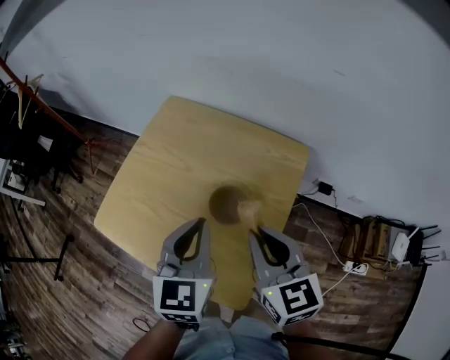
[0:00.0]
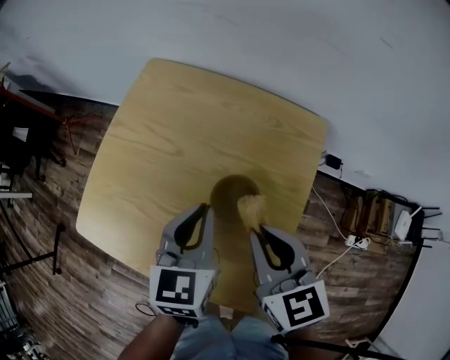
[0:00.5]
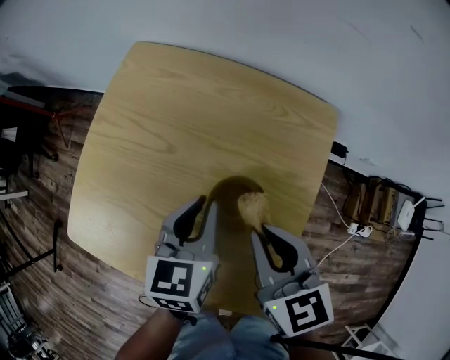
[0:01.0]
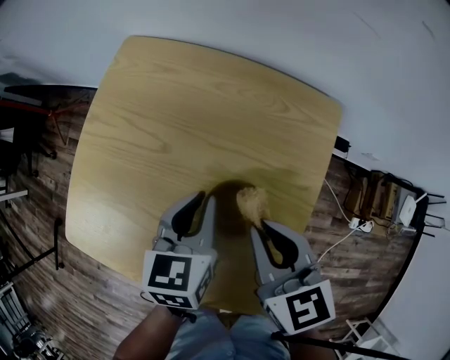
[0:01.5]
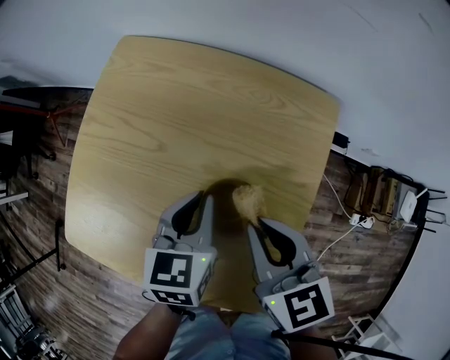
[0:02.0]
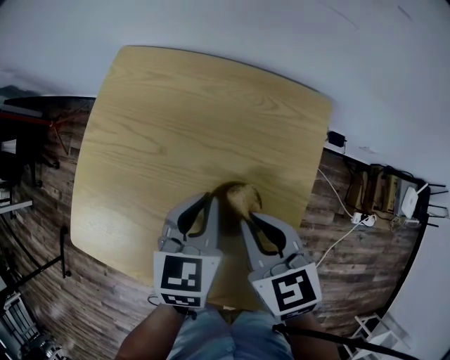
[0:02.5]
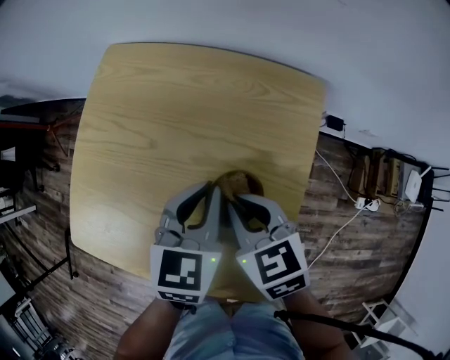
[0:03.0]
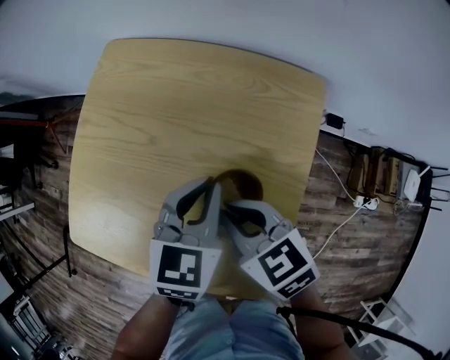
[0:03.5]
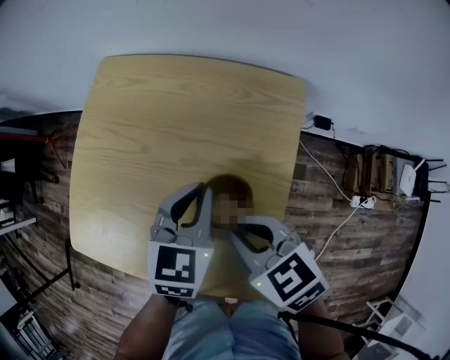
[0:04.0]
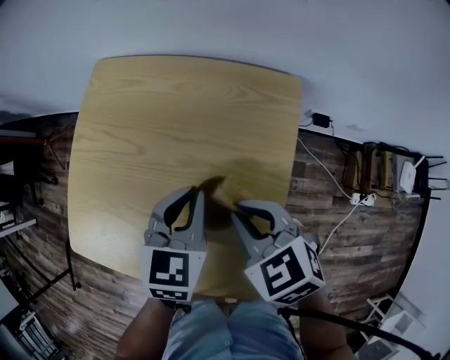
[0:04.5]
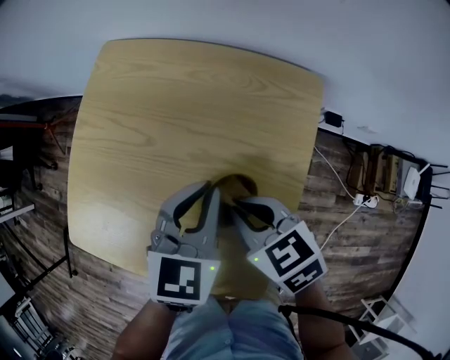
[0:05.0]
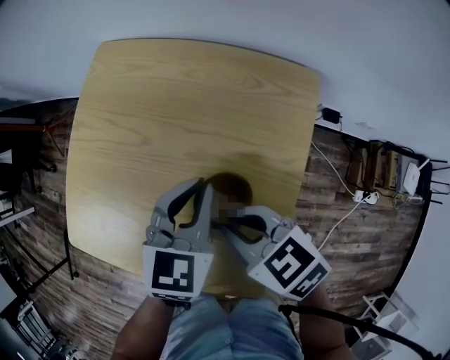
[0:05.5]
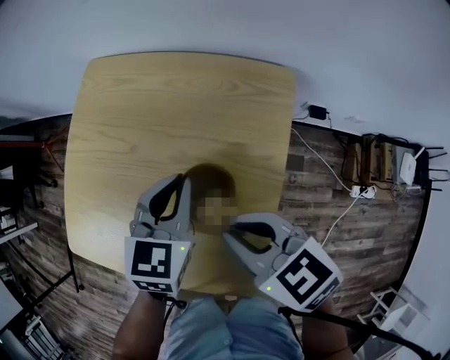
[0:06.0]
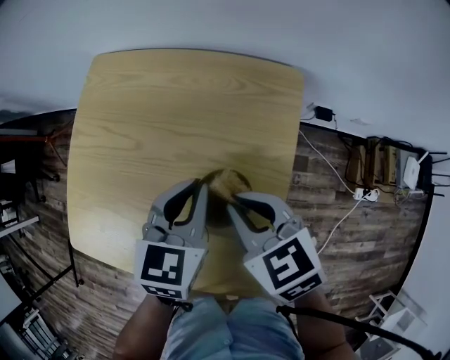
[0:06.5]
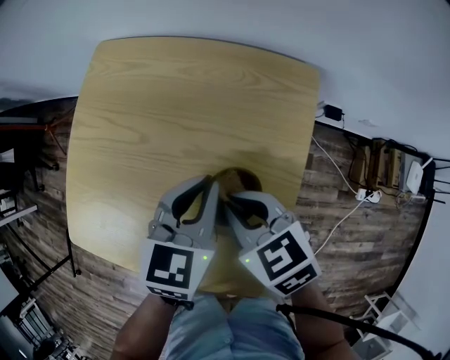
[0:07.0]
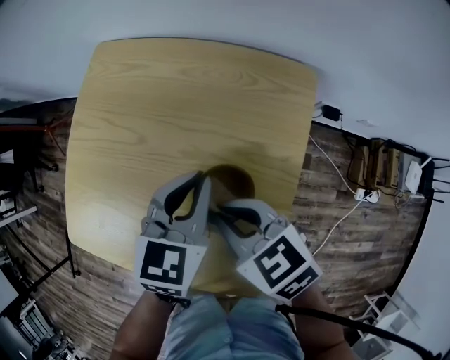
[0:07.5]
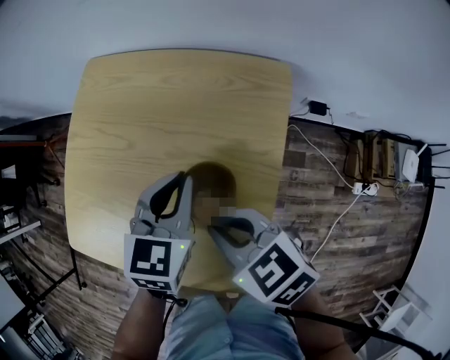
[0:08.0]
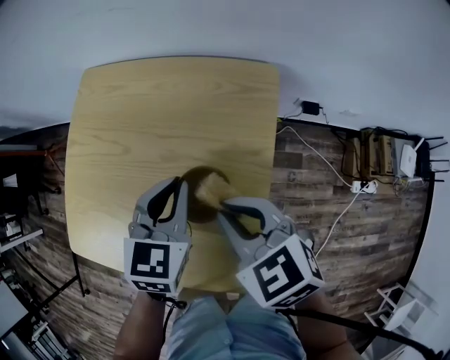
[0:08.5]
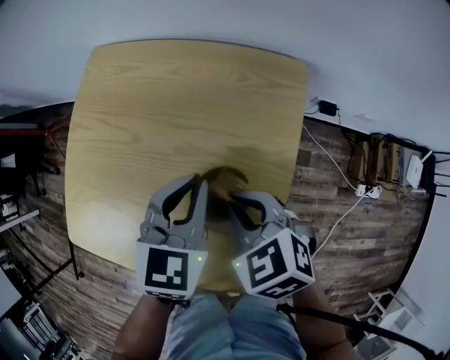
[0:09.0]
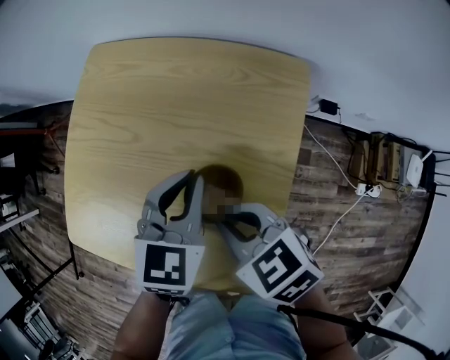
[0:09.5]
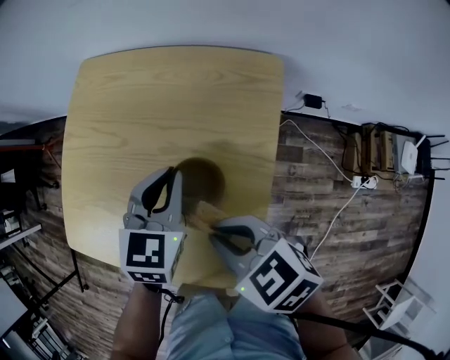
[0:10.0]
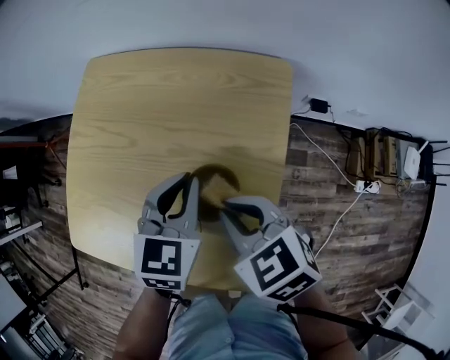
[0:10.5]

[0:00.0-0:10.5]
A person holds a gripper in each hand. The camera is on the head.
0:00.0 to 0:02.0: Both grippers move downward and forward, about 15 cm. The left gripper changes its angle by roughly 20 degrees.
0:02.0 to 0:04.0: The left gripper ends up approximately 5 cm from where it was, and changes its angle by some 20 degrees. The right gripper goes some 5 cm backward, and rotates approximately 20 degrees.
0:04.0 to 0:08.5: The grippers make only small movements.

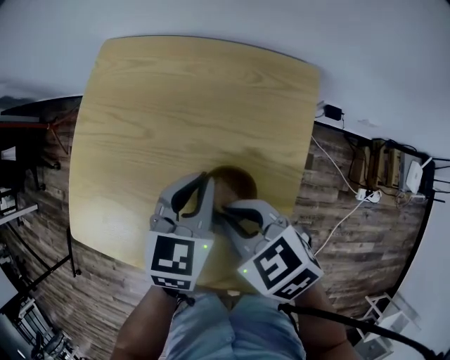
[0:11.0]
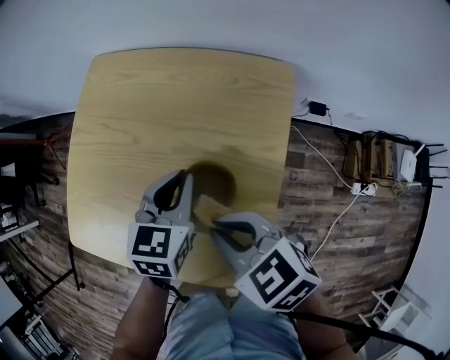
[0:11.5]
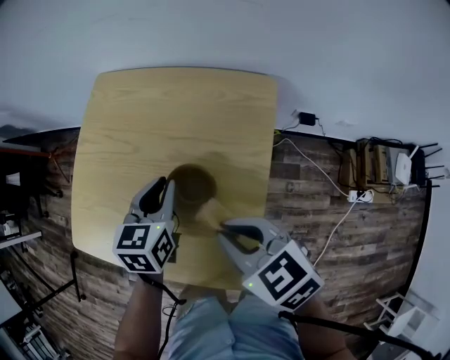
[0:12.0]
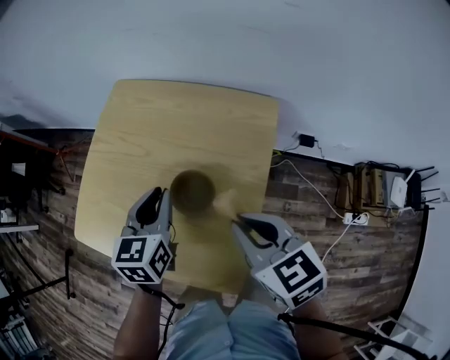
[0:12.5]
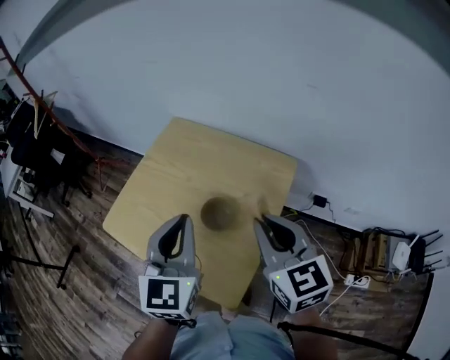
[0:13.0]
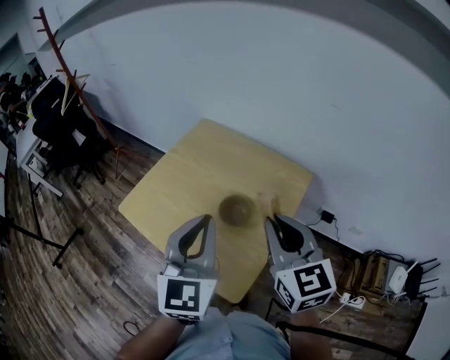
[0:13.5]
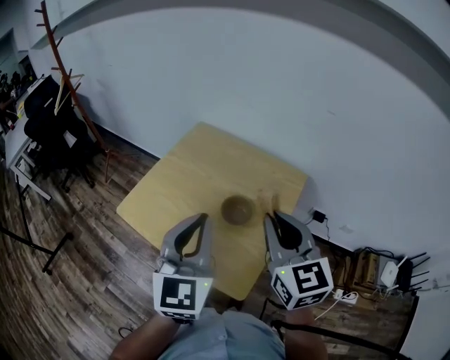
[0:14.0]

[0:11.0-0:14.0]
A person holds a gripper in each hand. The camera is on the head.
0:11.0 to 0:12.5: The right gripper travels upward, to the right and backward by some 15 cm, and swivels about 20 degrees; the left gripper travels to the left and upward by approximately 5 cm.
0:12.5 to 0:14.0: The right gripper heads upward, covering some 15 cm, and rotates about 30 degrees; the left gripper heads upward and backward, covering approximately 25 cm, and changes its angle by approximately 30 degrees.

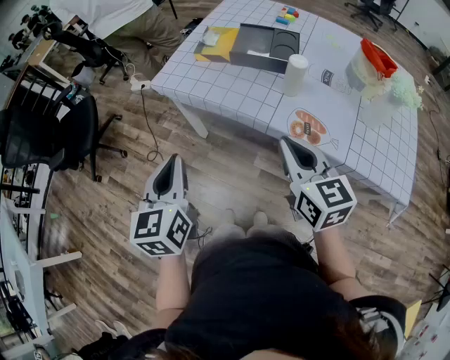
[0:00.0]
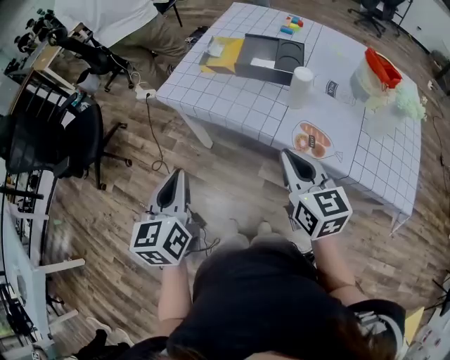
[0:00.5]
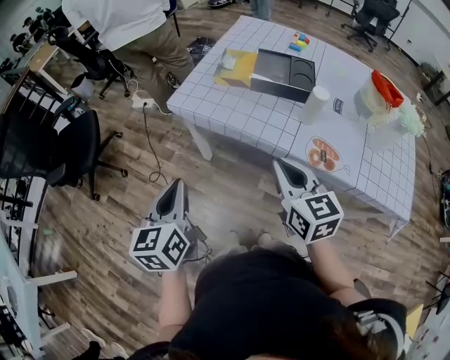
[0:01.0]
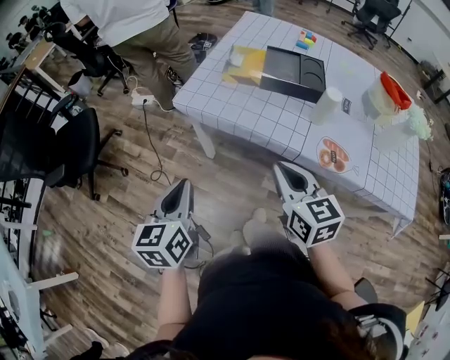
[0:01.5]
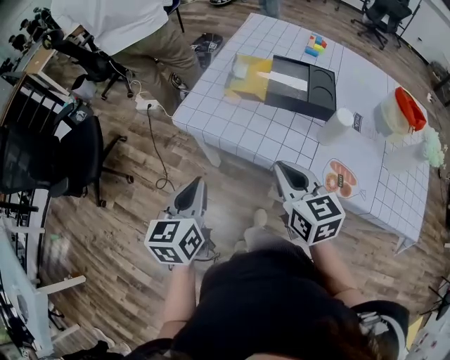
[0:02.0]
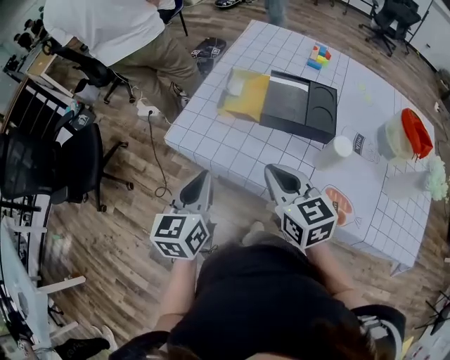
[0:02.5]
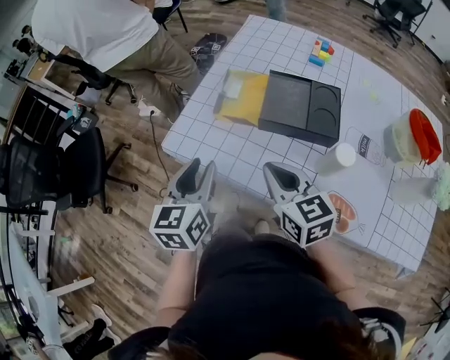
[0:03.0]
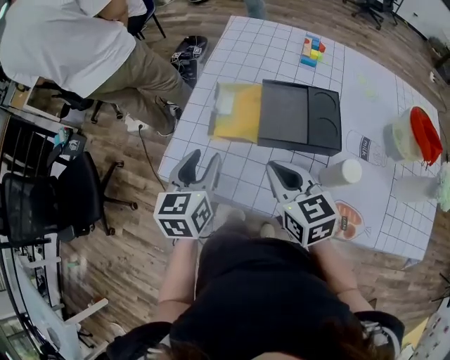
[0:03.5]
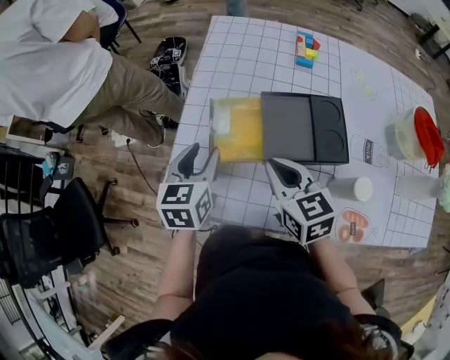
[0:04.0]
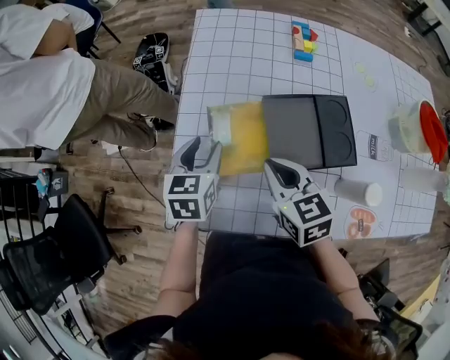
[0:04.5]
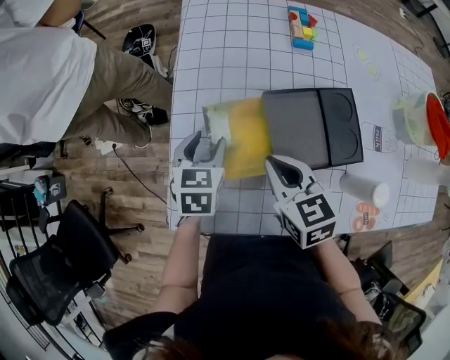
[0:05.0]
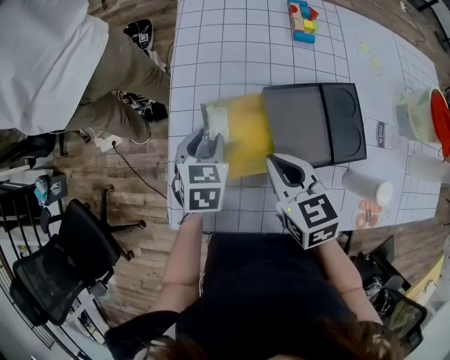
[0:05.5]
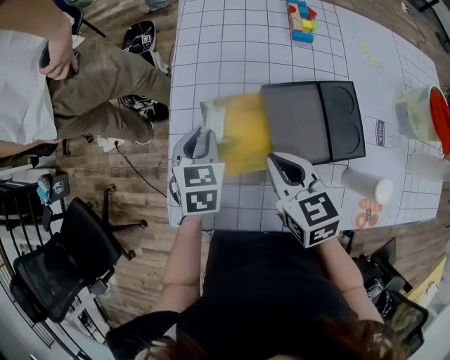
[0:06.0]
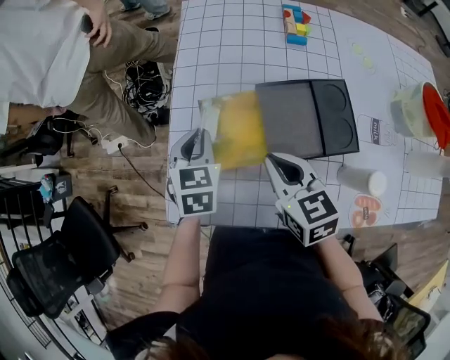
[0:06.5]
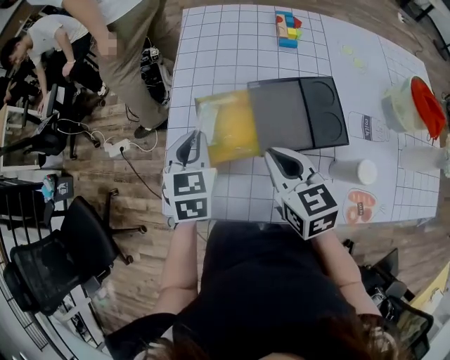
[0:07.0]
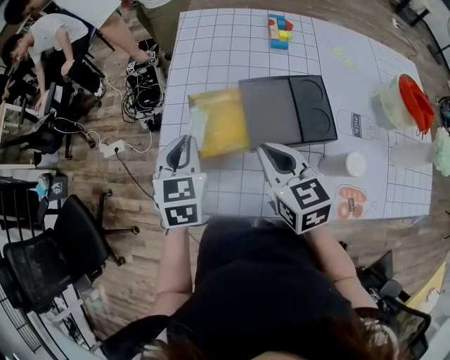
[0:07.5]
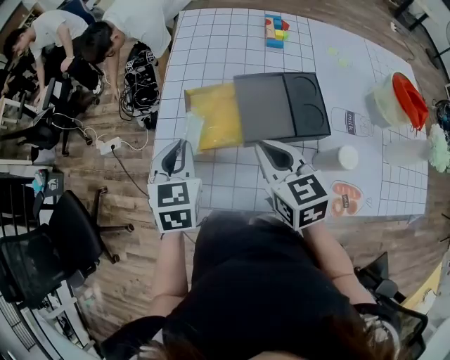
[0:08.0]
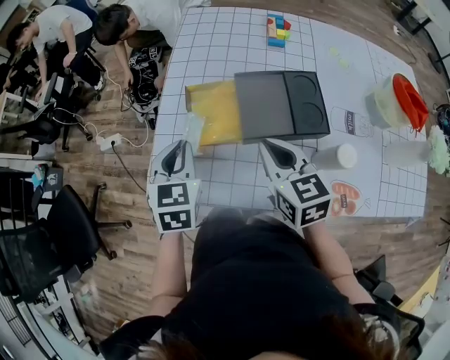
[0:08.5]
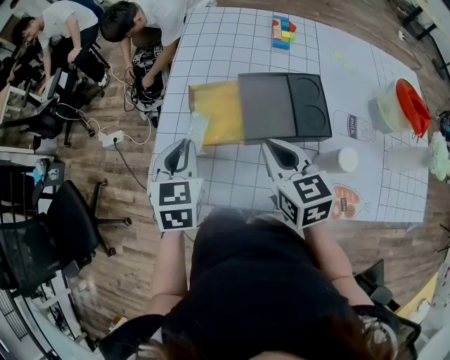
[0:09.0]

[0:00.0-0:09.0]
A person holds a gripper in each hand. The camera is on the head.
0:00.0 to 0:02.0: The right gripper shifts roughly 20 cm forward and to the left. Meanwhile the left gripper travels forward, to the left and downward by roughly 15 cm.
0:02.0 to 0:04.5: Both grippers move forward, about 35 cm. The left gripper swivels about 30 degrees, and opens.
0:04.5 to 0:07.0: The left gripper closes its fingers.
0:07.0 to 0:09.0: The left gripper travels backward by about 10 cm.

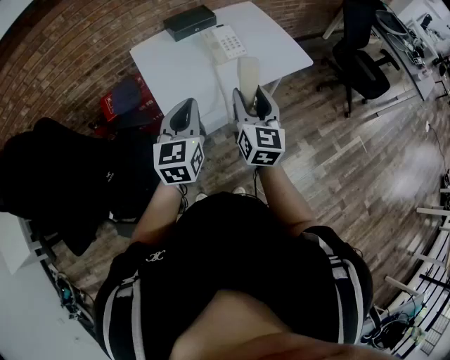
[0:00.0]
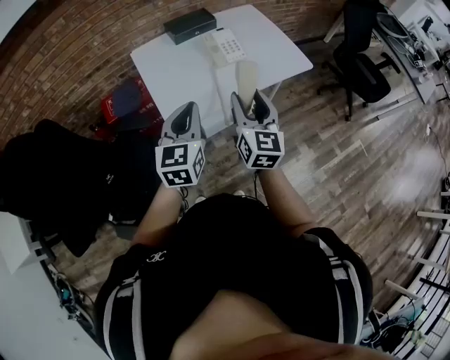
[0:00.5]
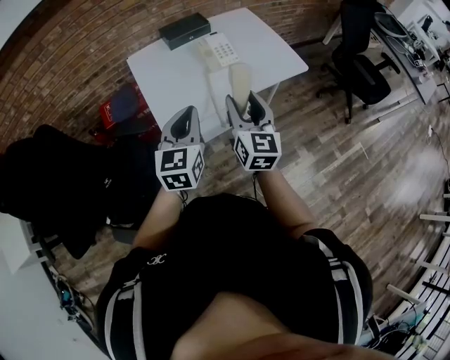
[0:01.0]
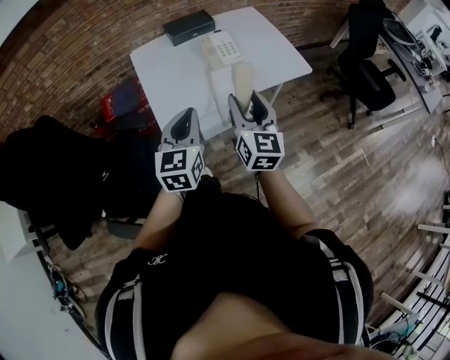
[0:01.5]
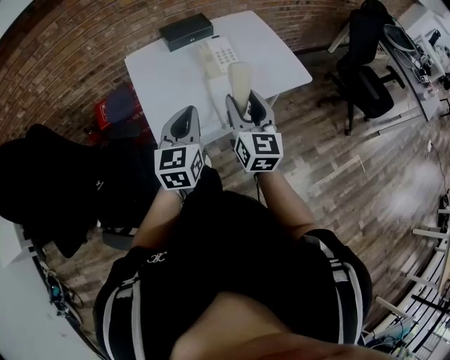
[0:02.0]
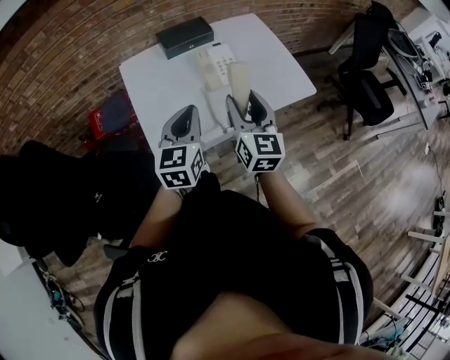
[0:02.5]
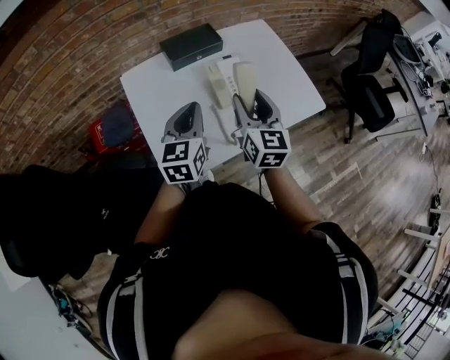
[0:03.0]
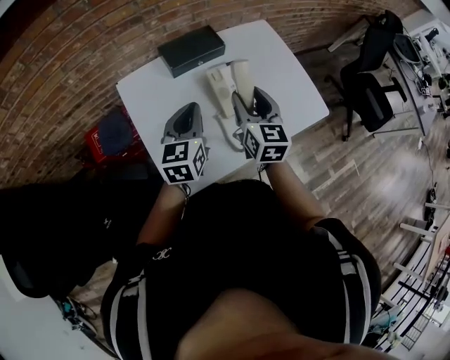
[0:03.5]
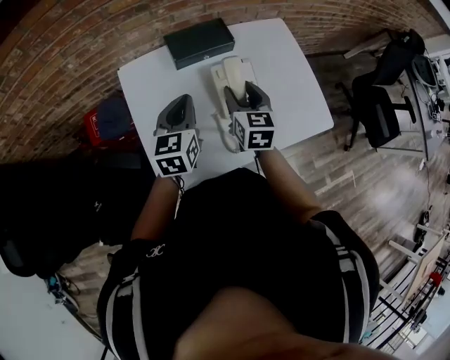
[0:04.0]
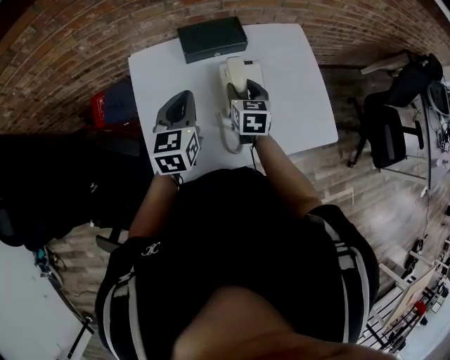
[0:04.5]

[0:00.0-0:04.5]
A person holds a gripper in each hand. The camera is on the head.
0:00.0 to 0:02.0: The right gripper shifts about 5 cm forward. Meanwhile the left gripper moves to the right and forward, some 10 cm.
0:02.0 to 0:04.5: The left gripper goes roughly 30 cm forward. The right gripper moves forward and downward, about 40 cm, and tilts its fingers about 30 degrees downward.
